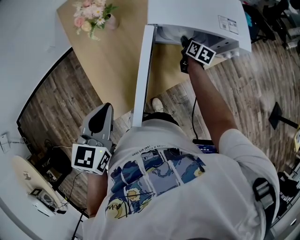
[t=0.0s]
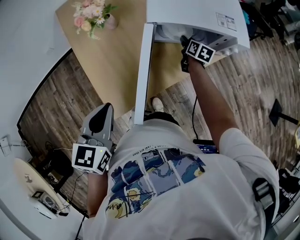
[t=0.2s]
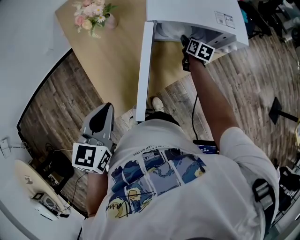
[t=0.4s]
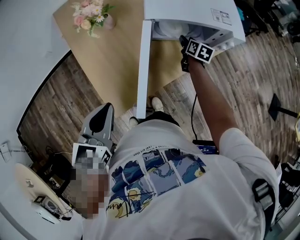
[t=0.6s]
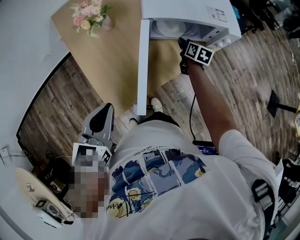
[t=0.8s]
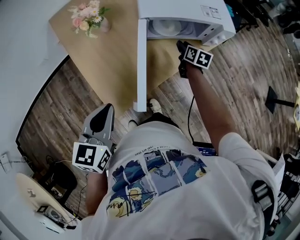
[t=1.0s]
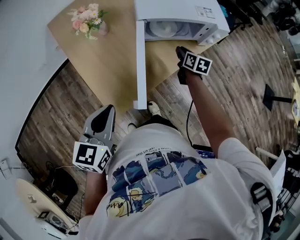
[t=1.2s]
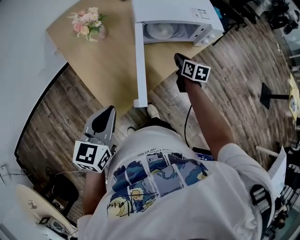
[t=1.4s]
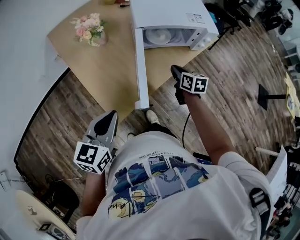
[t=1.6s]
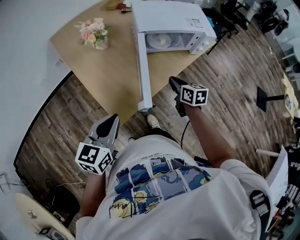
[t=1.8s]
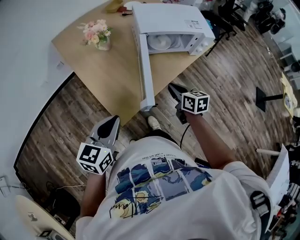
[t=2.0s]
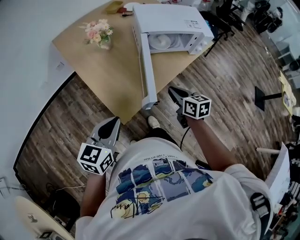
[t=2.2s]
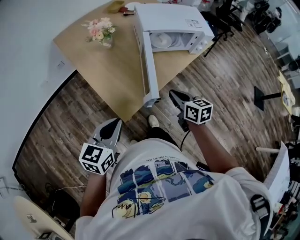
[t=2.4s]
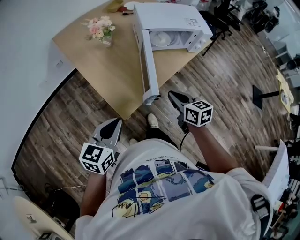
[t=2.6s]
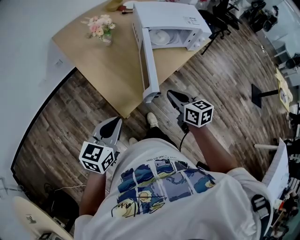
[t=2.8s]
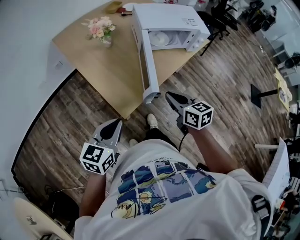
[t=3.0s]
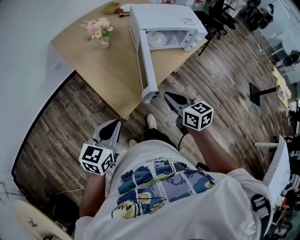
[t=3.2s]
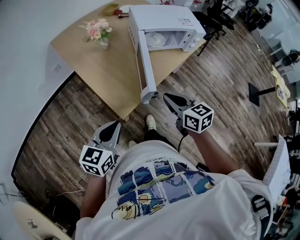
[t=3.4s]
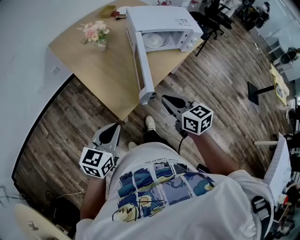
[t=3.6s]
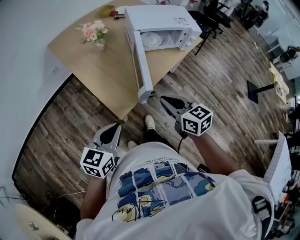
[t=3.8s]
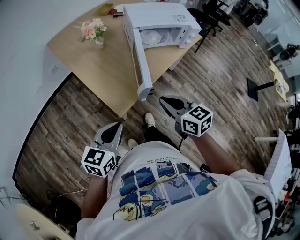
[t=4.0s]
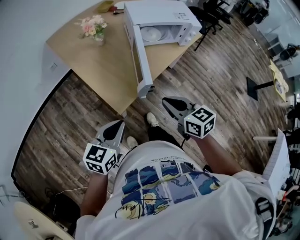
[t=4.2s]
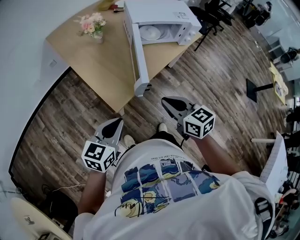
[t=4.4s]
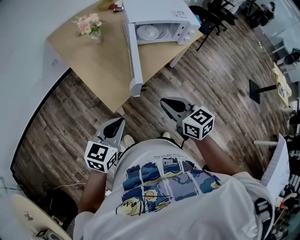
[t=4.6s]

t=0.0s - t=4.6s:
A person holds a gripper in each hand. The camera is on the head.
t=0.0s - t=1.6s: The right gripper goes some 20 cm backward, and closes; the left gripper is displaced backward by about 10 cm.
t=1.6s - t=3.0s: The left gripper heads backward, covering roughly 10 cm. Meanwhile the right gripper is displaced backward, to the left and upward by some 25 cm.
t=3.0s - t=4.6s: The right gripper heads backward, covering about 10 cm, while the left gripper is displaced to the right by roughly 10 cm.

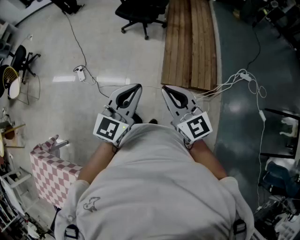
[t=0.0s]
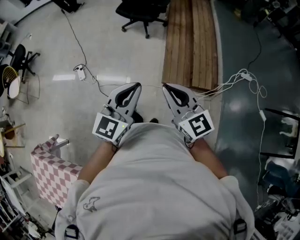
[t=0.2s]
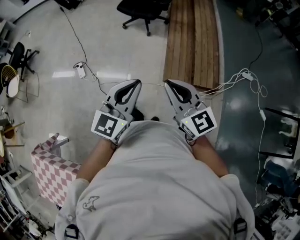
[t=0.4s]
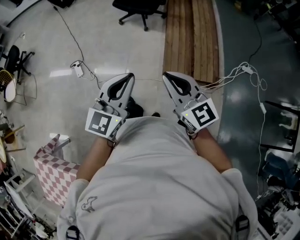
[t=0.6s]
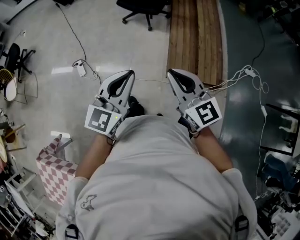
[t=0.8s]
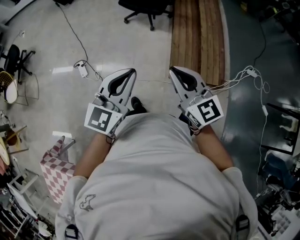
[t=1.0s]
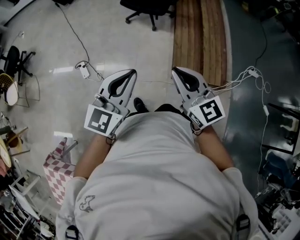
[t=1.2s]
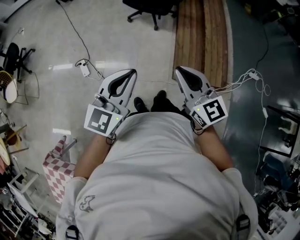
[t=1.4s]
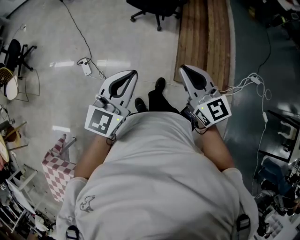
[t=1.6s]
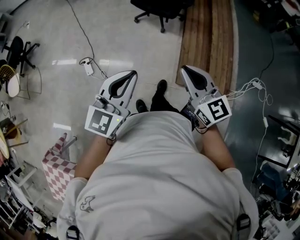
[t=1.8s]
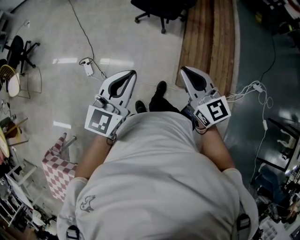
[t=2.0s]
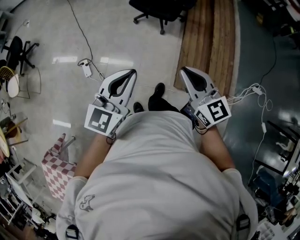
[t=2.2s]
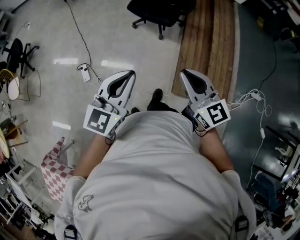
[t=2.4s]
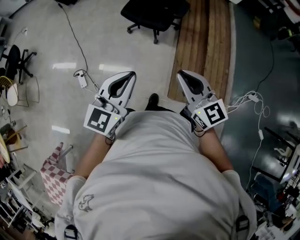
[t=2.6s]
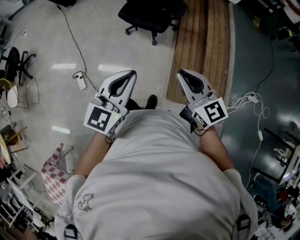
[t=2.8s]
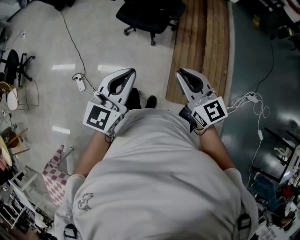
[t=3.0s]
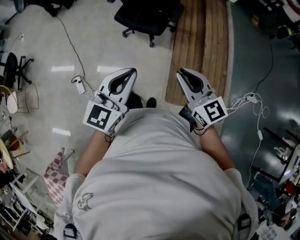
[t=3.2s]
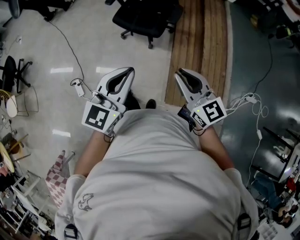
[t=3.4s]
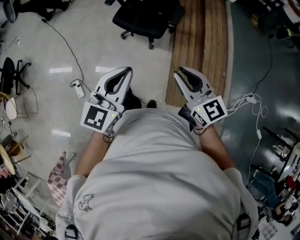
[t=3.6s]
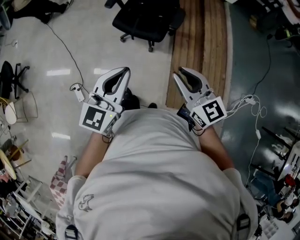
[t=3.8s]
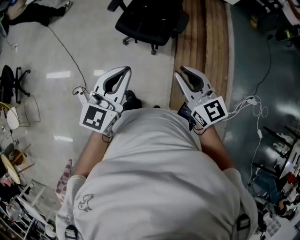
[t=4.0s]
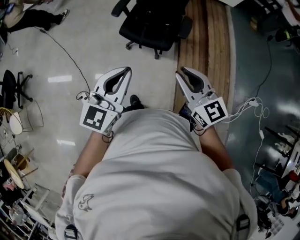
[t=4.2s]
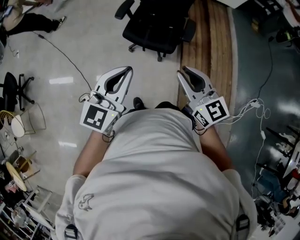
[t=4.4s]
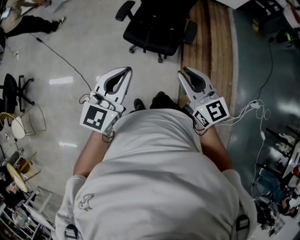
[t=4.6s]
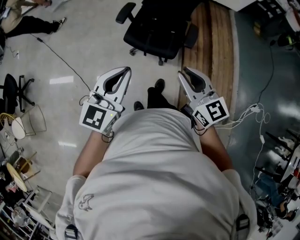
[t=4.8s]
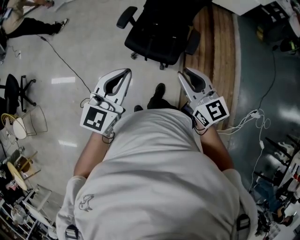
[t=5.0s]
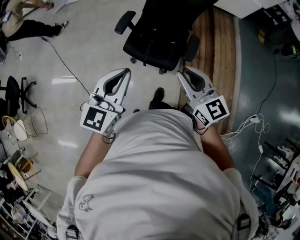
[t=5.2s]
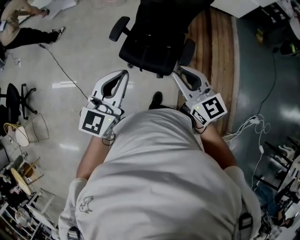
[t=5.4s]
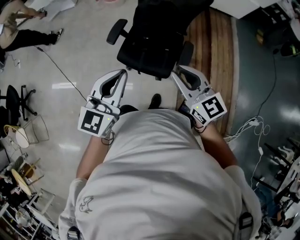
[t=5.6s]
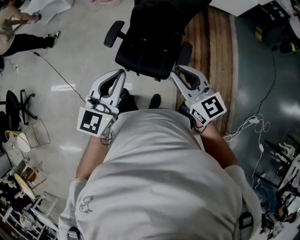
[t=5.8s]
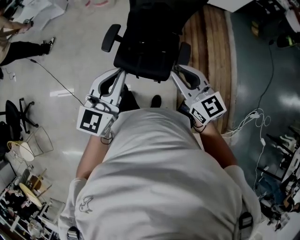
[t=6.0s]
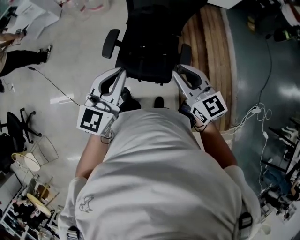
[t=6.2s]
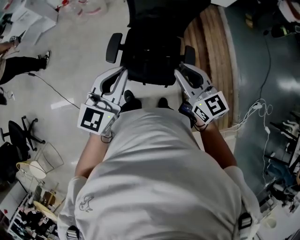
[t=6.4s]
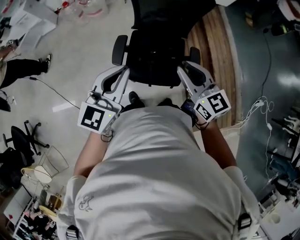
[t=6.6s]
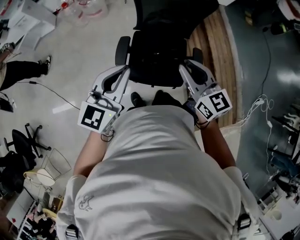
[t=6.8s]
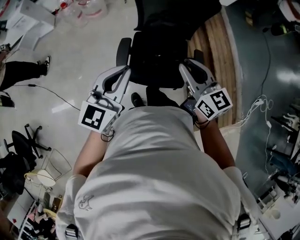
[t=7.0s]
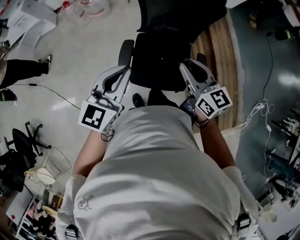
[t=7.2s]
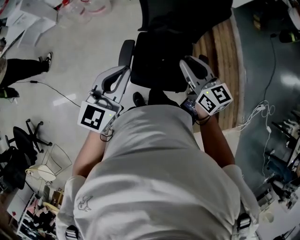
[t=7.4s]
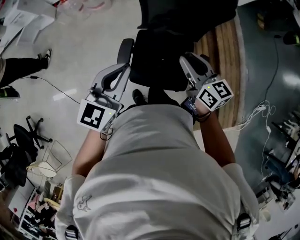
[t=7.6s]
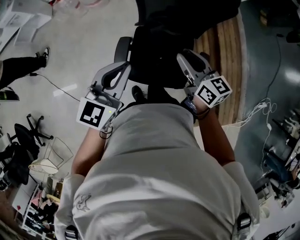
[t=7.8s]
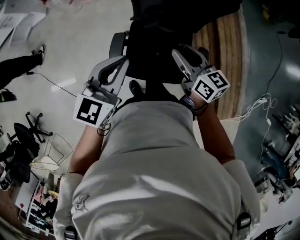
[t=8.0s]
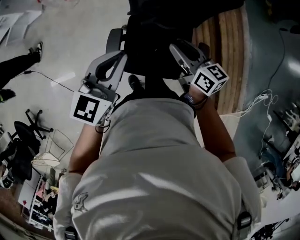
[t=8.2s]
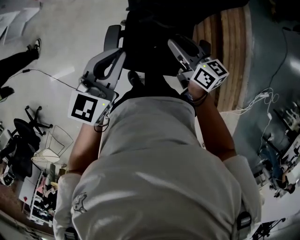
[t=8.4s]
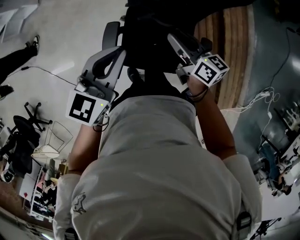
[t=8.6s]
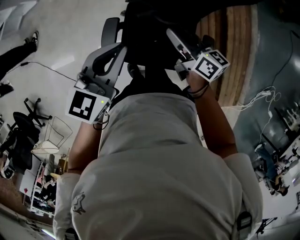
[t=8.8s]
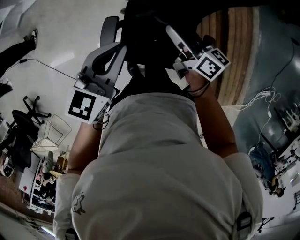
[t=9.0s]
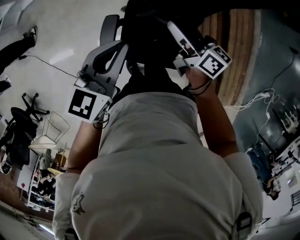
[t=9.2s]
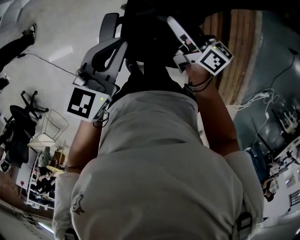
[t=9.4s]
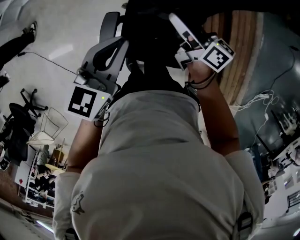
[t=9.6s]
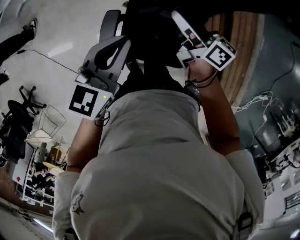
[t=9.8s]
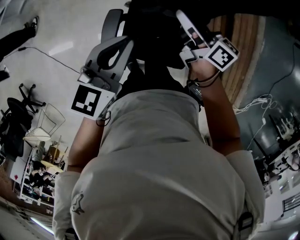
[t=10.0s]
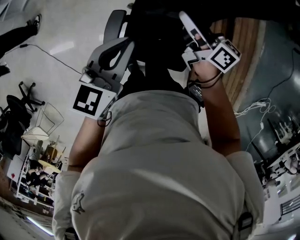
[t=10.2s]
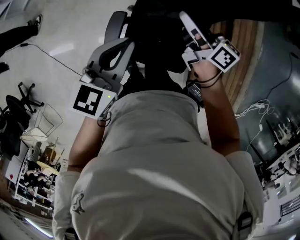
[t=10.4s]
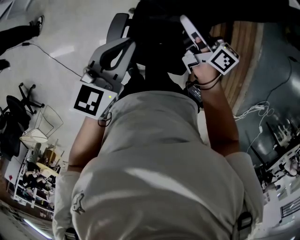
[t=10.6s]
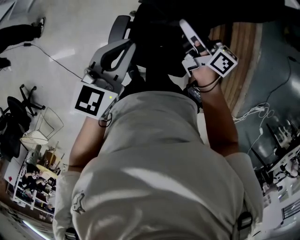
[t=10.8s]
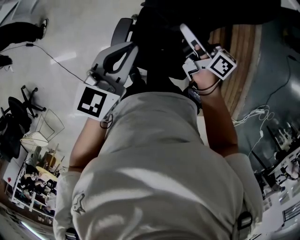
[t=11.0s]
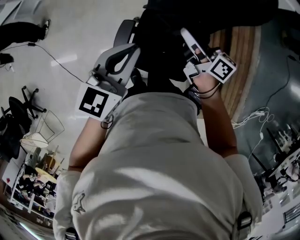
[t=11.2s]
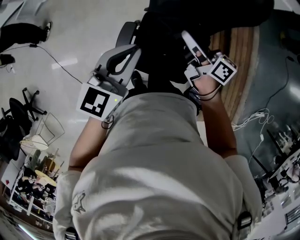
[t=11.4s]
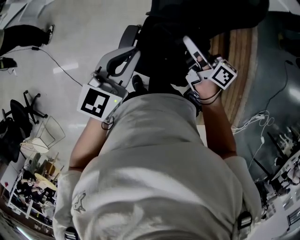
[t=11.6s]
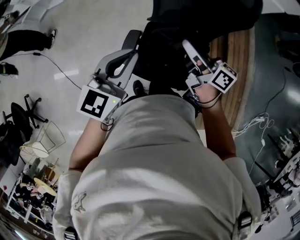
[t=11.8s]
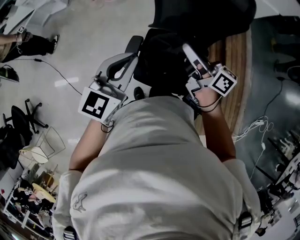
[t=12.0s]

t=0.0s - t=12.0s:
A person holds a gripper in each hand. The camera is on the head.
t=0.0s - t=1.6s: Both grippers move forward and to the left, some 25 cm.
t=1.6s - t=3.0s: The grippers both shift forward and to the right by some 25 cm.
t=3.0s - t=4.4s: Both grippers move forward and to the left, roughly 25 cm.
t=4.4s - t=6.0s: Both grippers travel together forward, approximately 30 cm.
t=6.0s - t=7.6s: The grippers both shift forward and to the left by approximately 30 cm. The right gripper turns by about 30 degrees.
t=7.6s - t=9.0s: The right gripper heads downward and forward, covering roughly 20 cm, and turns by about 30 degrees. Meanwhile the left gripper moves forward, downward and to the right, some 20 cm.
t=9.0s - t=10.4s: The right gripper changes place by approximately 5 cm, and closes.
t=10.4s - t=12.0s: The right gripper heads upward and backward, covering roughly 15 cm, while the left gripper heads upward, backward and to the left, covering roughly 15 cm.

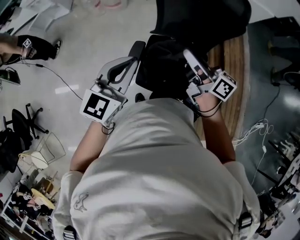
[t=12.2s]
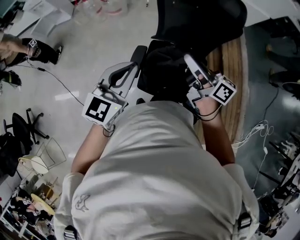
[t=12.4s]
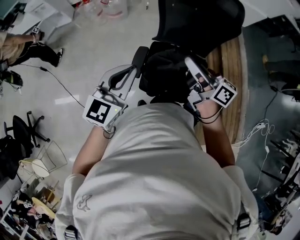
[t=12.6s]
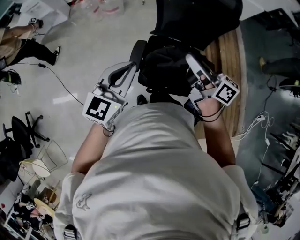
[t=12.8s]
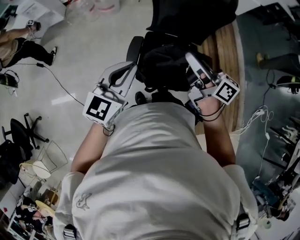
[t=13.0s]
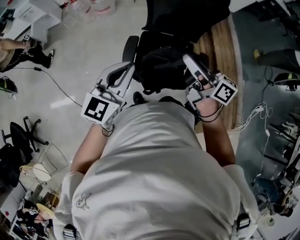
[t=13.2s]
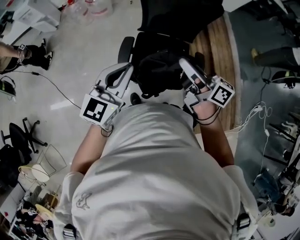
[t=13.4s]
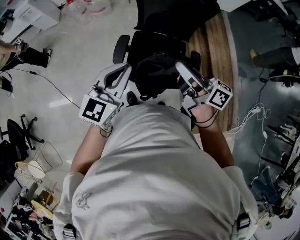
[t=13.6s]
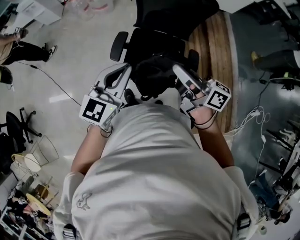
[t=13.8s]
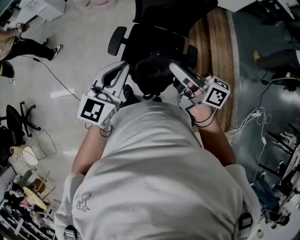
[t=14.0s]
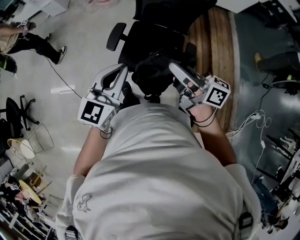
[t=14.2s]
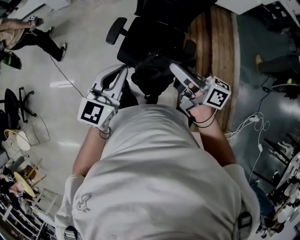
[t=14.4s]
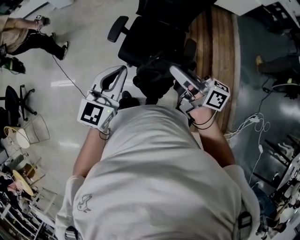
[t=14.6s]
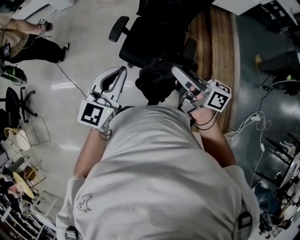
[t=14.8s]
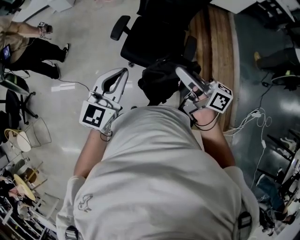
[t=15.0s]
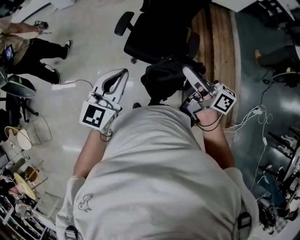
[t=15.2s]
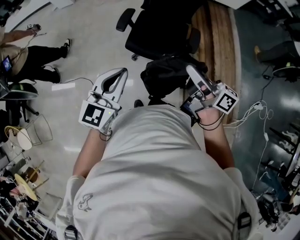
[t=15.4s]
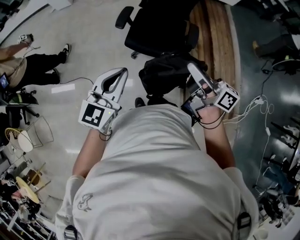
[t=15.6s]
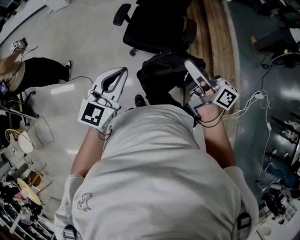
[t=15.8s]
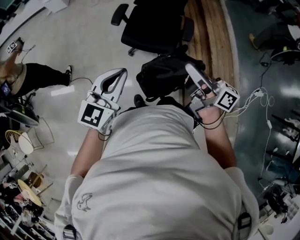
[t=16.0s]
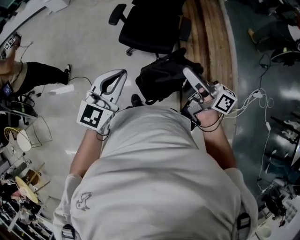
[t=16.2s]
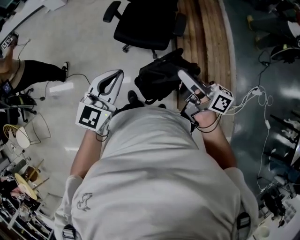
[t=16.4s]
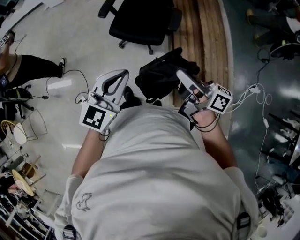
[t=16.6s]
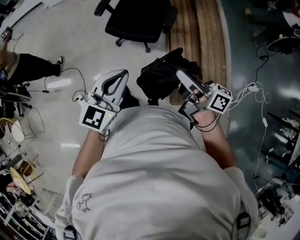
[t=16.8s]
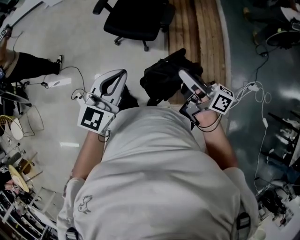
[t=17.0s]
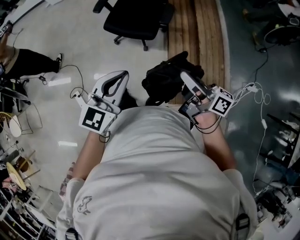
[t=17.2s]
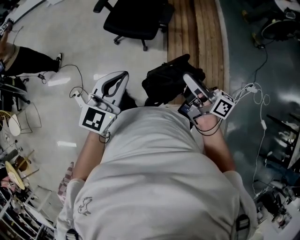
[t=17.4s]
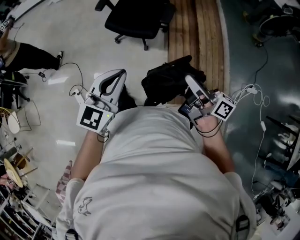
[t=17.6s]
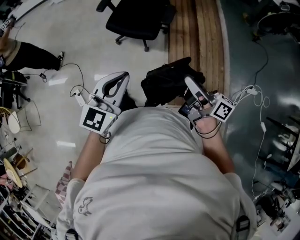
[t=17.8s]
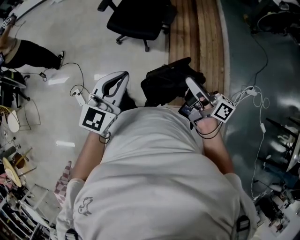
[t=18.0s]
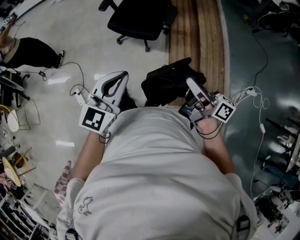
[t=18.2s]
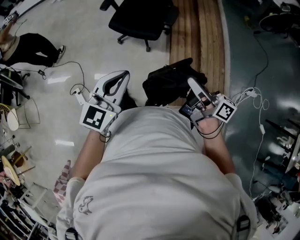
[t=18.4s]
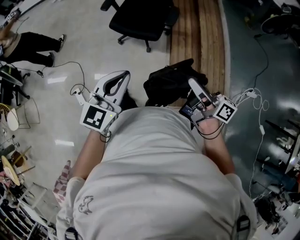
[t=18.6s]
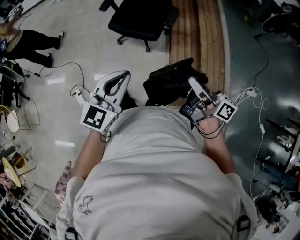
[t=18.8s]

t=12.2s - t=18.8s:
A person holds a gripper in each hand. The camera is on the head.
t=12.2s - t=13.8s: The grippers both shift backward by roughly 20 cm.
t=13.8s - t=15.4s: The two grippers go roughly 25 cm backward.
t=15.4s - t=17.2s: Both grippers move backward and to the right, about 30 cm.
t=17.2s - t=18.8s: The grippers move only a little.
